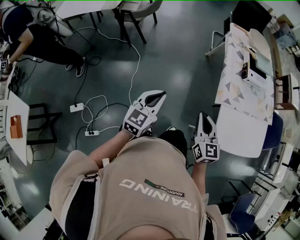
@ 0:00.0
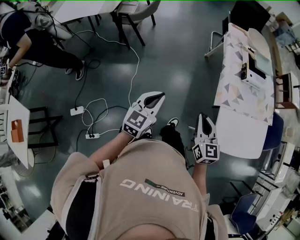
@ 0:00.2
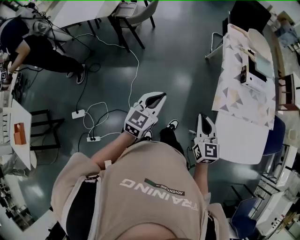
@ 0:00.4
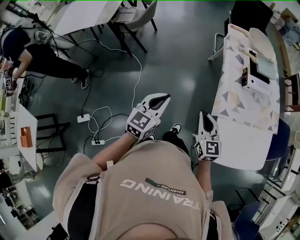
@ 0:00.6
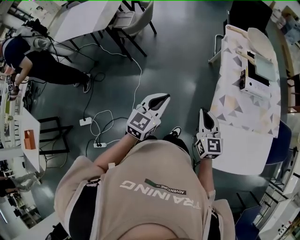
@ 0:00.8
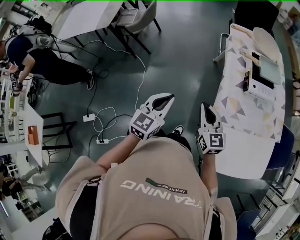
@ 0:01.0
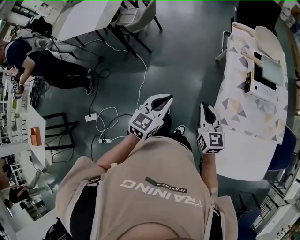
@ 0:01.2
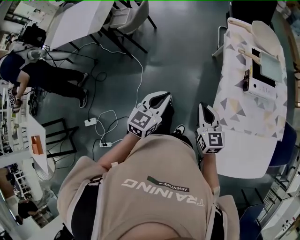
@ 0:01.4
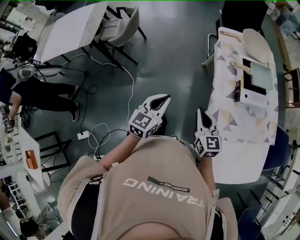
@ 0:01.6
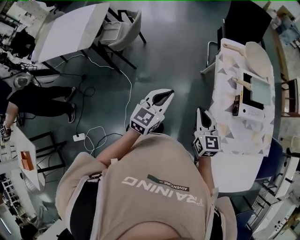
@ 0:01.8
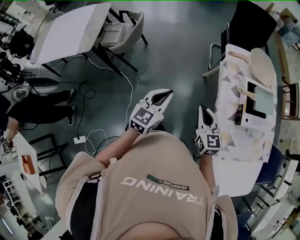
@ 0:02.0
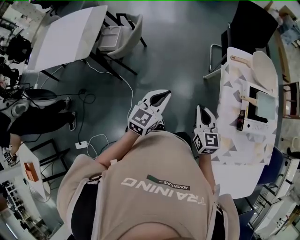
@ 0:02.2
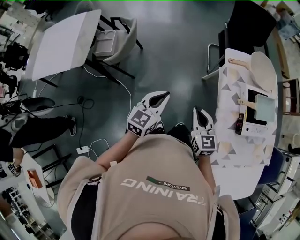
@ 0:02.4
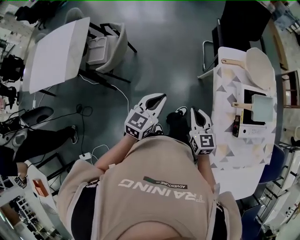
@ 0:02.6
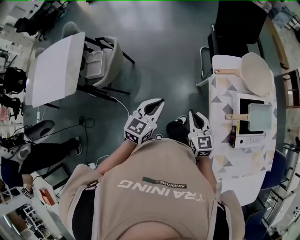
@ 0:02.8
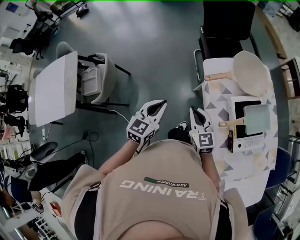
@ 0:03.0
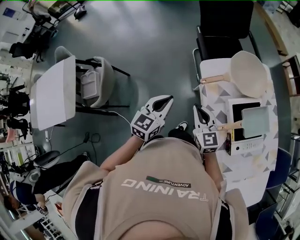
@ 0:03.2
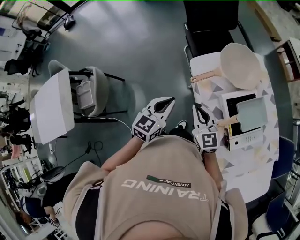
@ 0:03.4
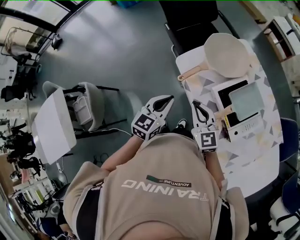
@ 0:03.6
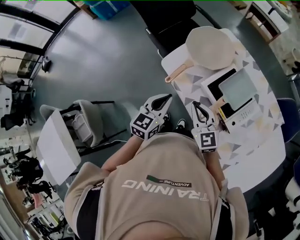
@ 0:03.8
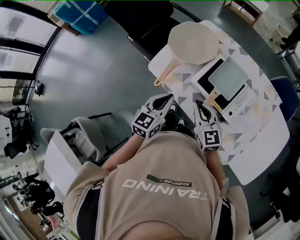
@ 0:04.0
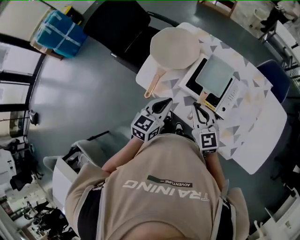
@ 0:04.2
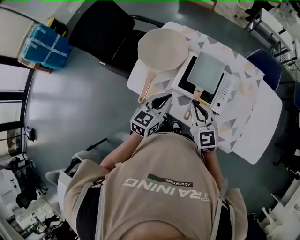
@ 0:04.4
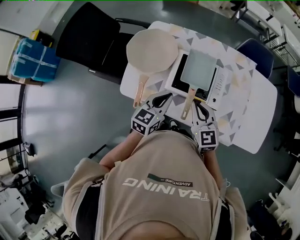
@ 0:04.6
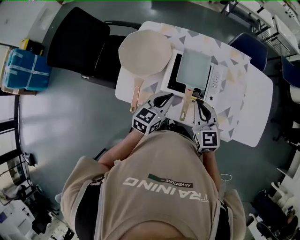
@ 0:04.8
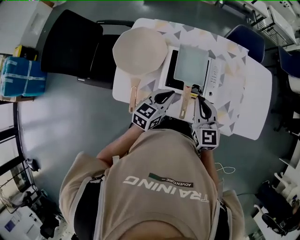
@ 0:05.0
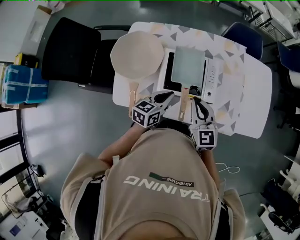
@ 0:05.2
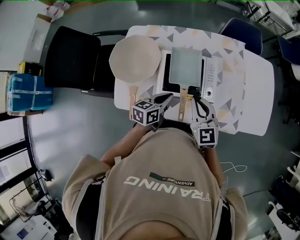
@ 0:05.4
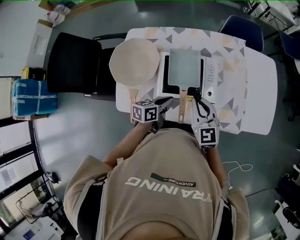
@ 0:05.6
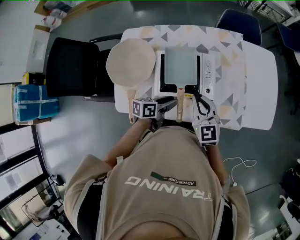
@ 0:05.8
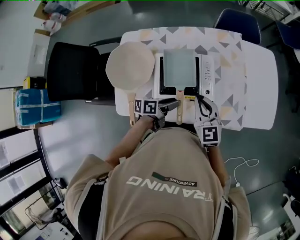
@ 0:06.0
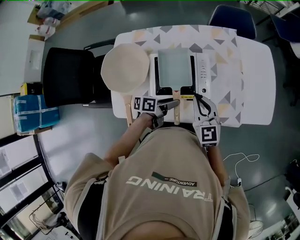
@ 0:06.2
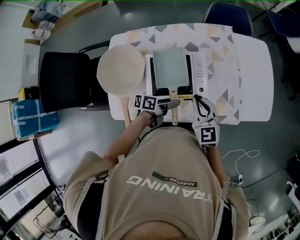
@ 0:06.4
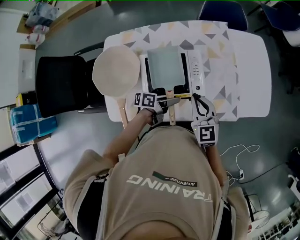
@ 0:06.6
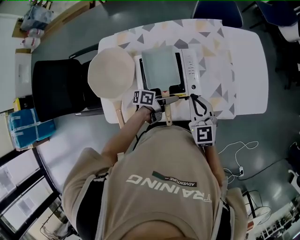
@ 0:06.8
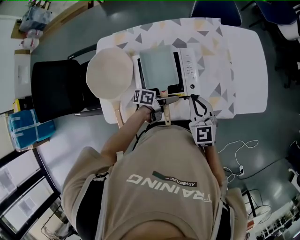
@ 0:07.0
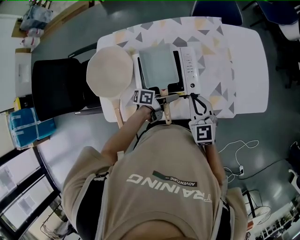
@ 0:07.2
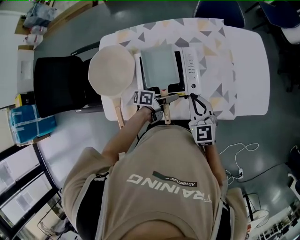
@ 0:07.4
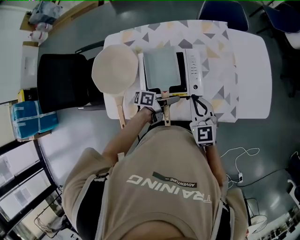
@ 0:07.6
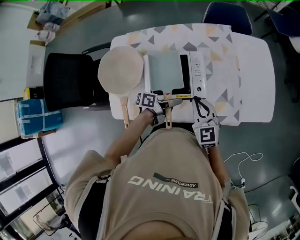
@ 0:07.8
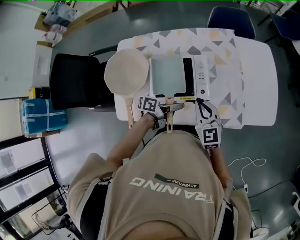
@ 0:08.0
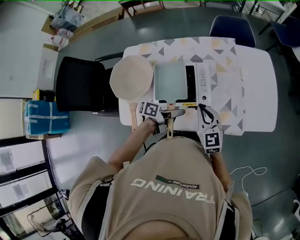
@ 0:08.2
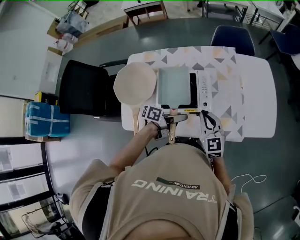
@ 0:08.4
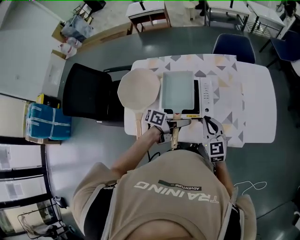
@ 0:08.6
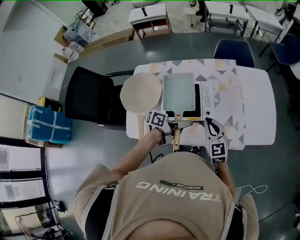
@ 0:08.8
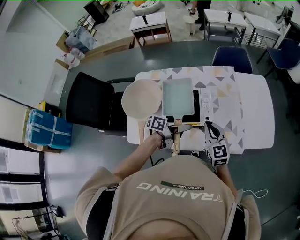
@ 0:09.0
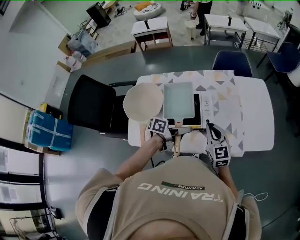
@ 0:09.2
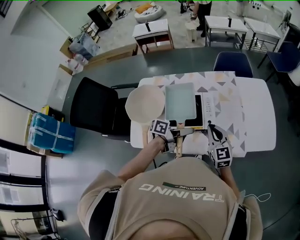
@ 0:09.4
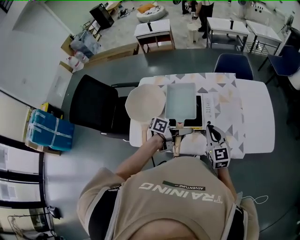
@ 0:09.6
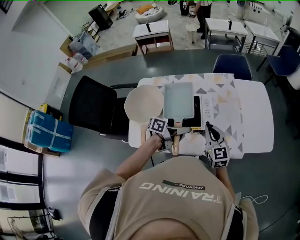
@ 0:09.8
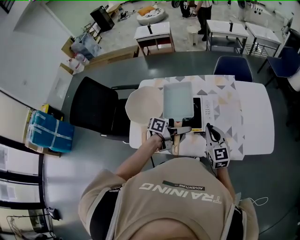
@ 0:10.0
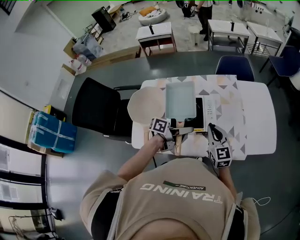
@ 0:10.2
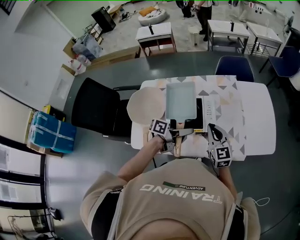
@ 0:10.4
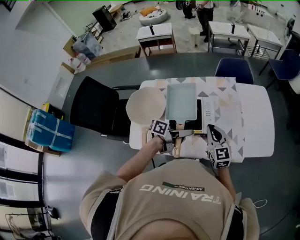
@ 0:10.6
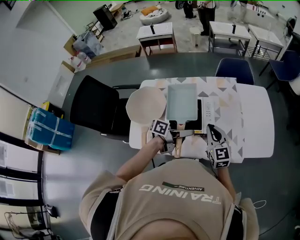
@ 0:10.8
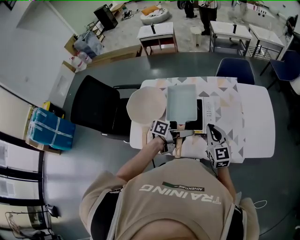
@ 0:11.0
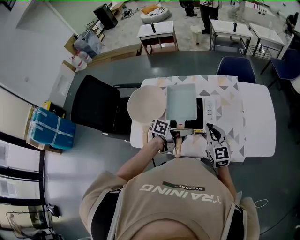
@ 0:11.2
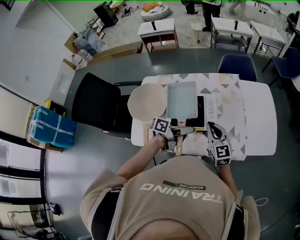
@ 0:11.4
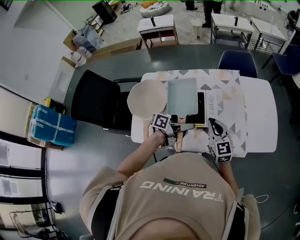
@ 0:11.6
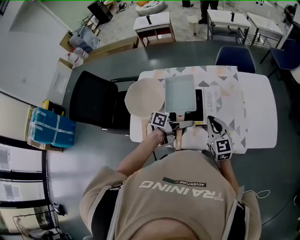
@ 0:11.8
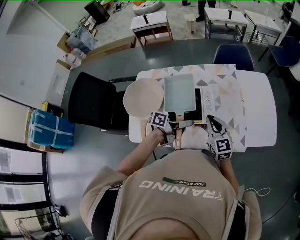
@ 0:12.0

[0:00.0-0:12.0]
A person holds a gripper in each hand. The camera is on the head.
0:00.0 to 0:01.6: The right gripper goes approximately 30 cm forward; the left gripper travels forward and to the right by roughly 30 cm.
0:01.6 to 0:03.0: The two grippers go some 40 cm forward.
0:03.0 to 0:04.4: The left gripper ends up about 30 cm from where it was, and swivels some 60 degrees, while the right gripper shifts by roughly 25 cm, and swivels roughly 60 degrees.
0:04.4 to 0:06.0: The left gripper heads downward, covering about 15 cm, turns by roughly 60 degrees, and opens. The right gripper moves about 10 cm, and changes its angle by approximately 30 degrees.
0:06.0 to 0:07.6: The left gripper heads to the right, covering roughly 5 cm, and closes its fingers, while the right gripper moves about 5 cm.
0:07.6 to 0:09.0: The left gripper heads upward, covering approximately 10 cm, while the right gripper shifts by approximately 5 cm.
0:09.0 to 0:12.0: The grippers stay close to where they were, moving slightly.

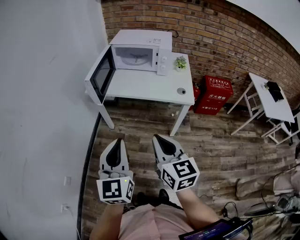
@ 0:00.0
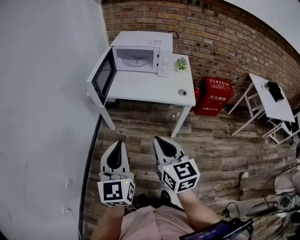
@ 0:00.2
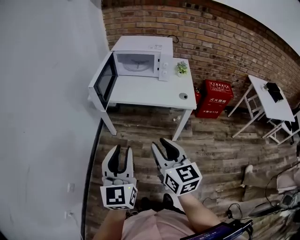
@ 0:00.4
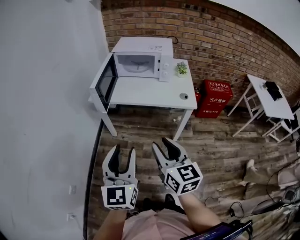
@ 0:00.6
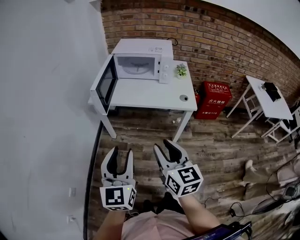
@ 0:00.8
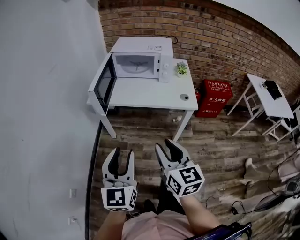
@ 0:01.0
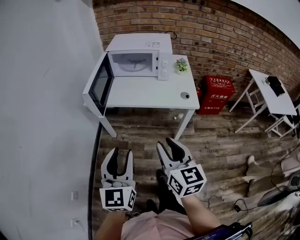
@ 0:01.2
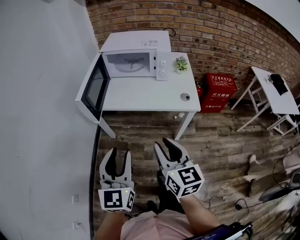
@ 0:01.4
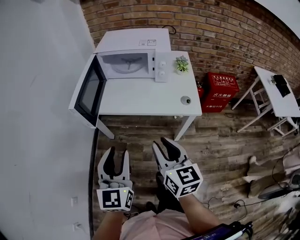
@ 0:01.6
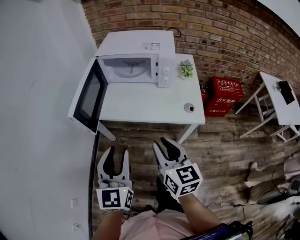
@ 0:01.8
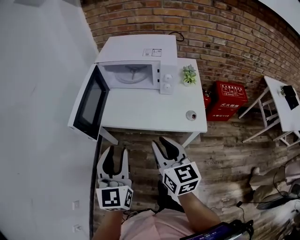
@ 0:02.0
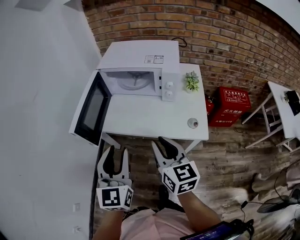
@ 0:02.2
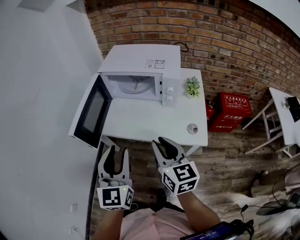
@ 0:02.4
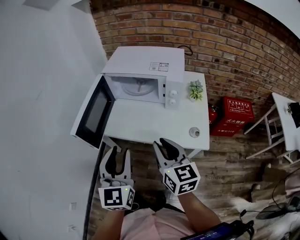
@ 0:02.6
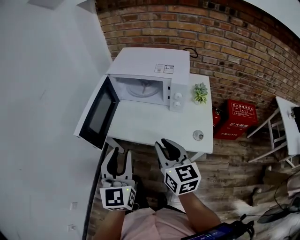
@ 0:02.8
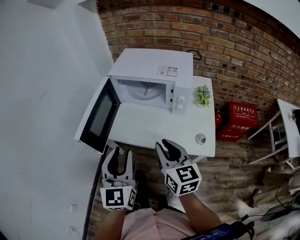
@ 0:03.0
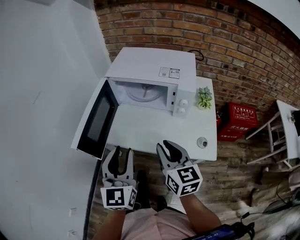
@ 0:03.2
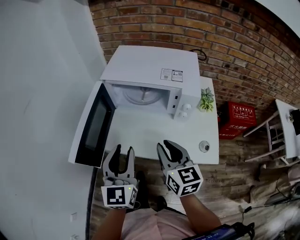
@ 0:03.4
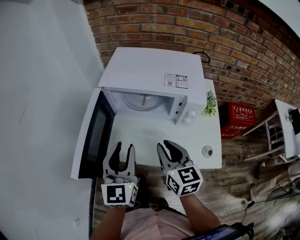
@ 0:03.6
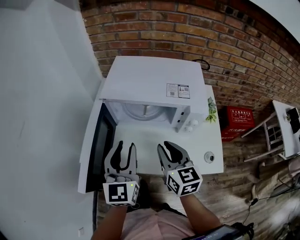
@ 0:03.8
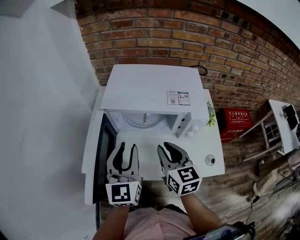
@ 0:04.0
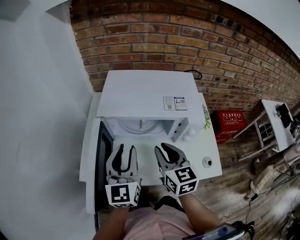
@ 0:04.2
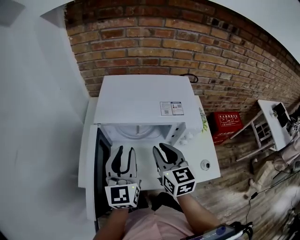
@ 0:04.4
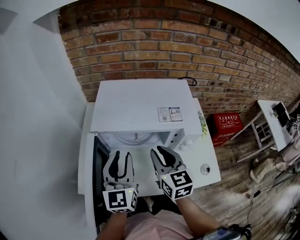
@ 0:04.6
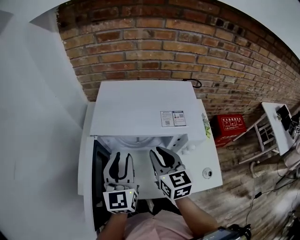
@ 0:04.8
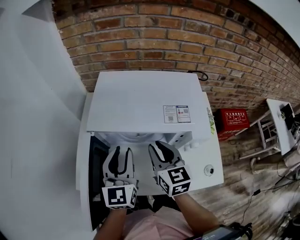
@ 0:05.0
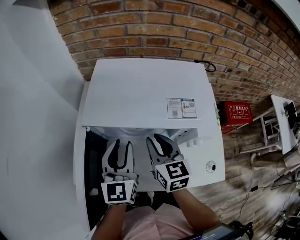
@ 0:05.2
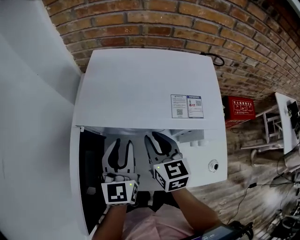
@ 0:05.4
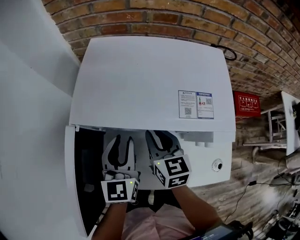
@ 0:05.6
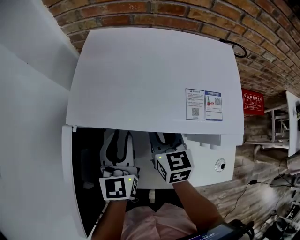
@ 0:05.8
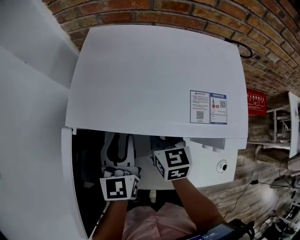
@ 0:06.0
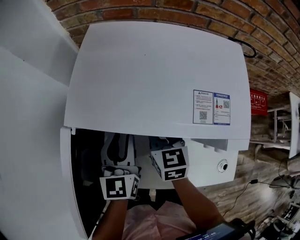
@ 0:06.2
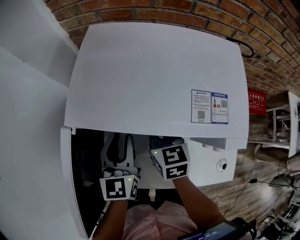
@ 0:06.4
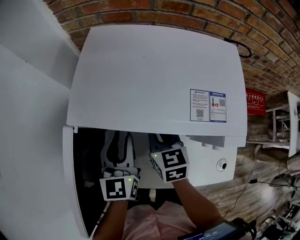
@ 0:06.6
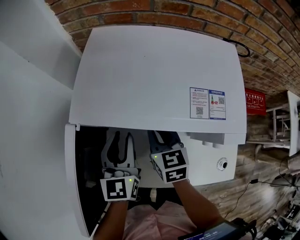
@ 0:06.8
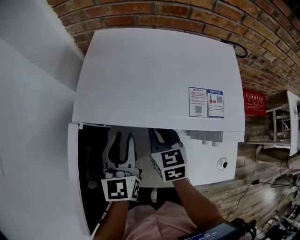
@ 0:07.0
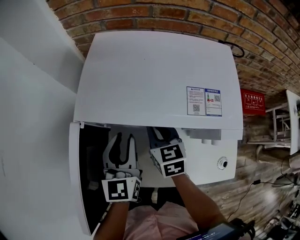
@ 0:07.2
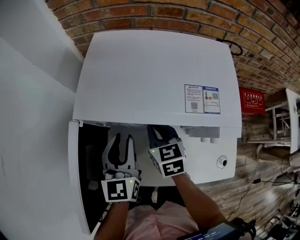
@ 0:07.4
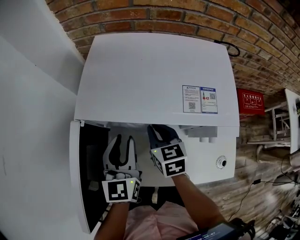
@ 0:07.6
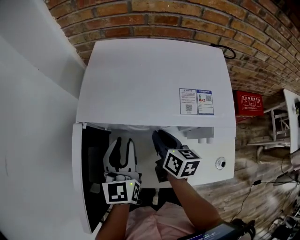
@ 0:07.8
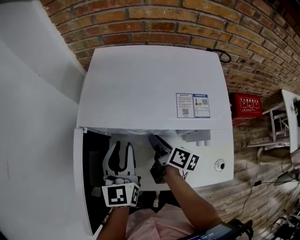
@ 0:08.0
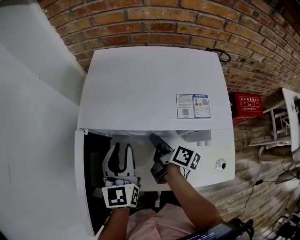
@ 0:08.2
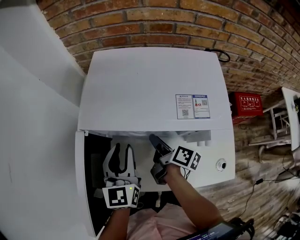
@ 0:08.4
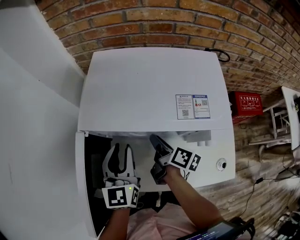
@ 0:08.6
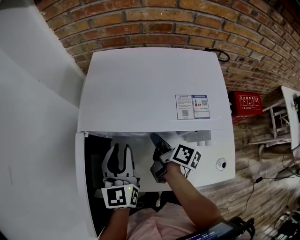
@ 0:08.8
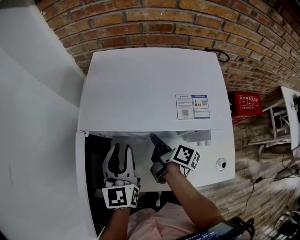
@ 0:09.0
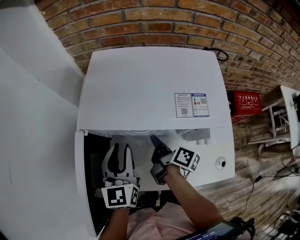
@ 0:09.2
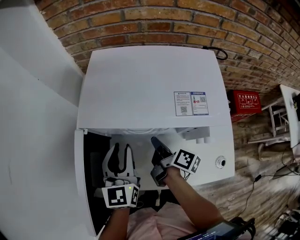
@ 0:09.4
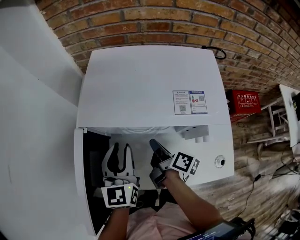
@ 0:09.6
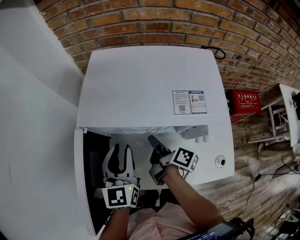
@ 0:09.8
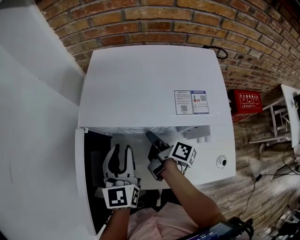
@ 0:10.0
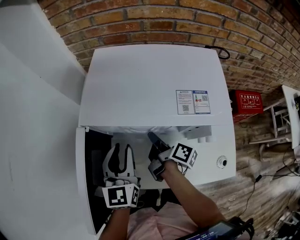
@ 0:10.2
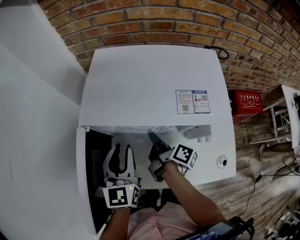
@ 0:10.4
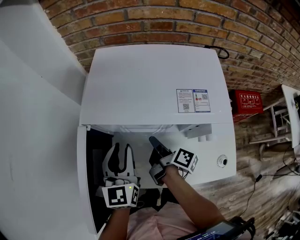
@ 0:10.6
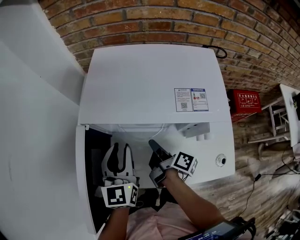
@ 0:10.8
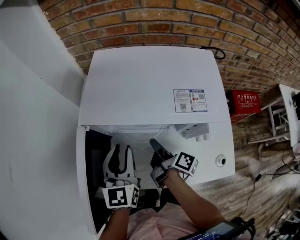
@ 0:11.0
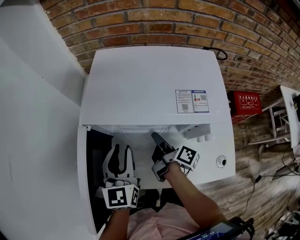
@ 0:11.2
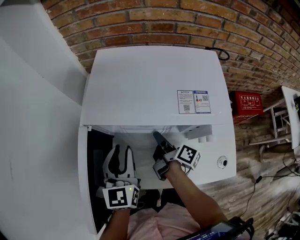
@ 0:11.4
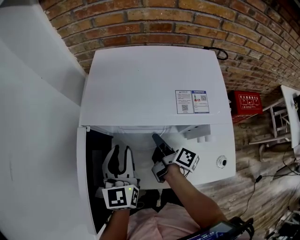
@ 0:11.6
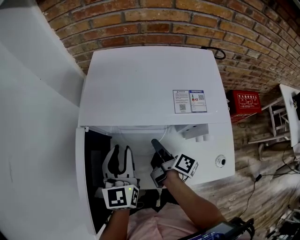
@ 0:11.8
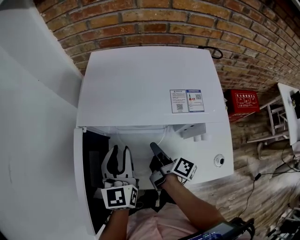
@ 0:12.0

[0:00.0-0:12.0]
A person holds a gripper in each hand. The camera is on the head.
0:00.0 to 0:01.6: Both grippers travel together forward, approximately 15 cm. The left gripper opens up. Meanwhile the right gripper opens.
0:01.6 to 0:03.0: The grippers both shift forward by about 15 cm.
0:03.0 to 0:04.4: The two grippers go about 25 cm forward.
0:04.4 to 0:06.0: The two grippers go roughly 20 cm downward and forward.
0:06.0 to 0:07.6: The grippers make only small movements.
0:07.6 to 0:09.0: The right gripper rolls clockwise, seen from behind, by about 70 degrees, and opens and closes again.
0:09.0 to 0:10.4: The right gripper opens and closes again.
0:10.4 to 0:12.0: The grippers stay close to where they were, moving slightly.
